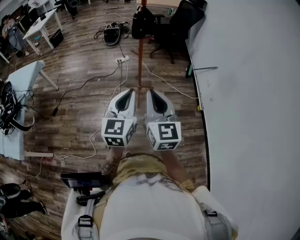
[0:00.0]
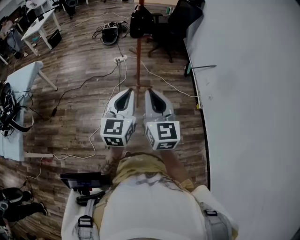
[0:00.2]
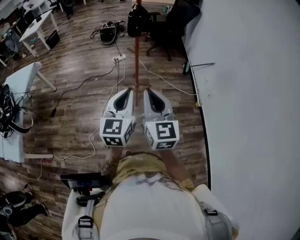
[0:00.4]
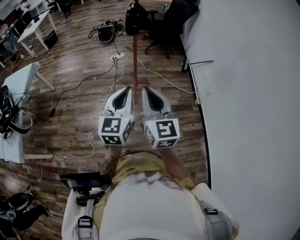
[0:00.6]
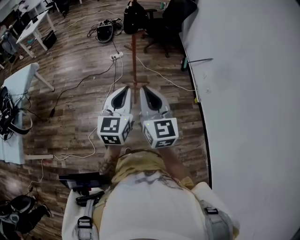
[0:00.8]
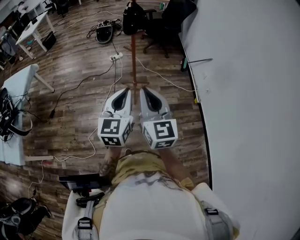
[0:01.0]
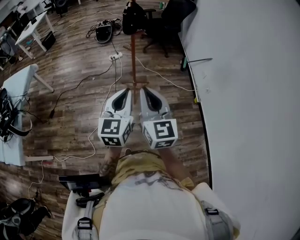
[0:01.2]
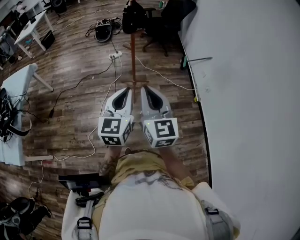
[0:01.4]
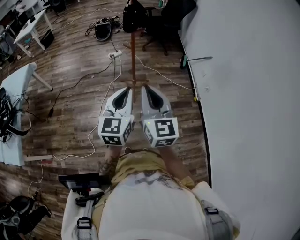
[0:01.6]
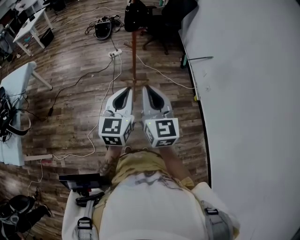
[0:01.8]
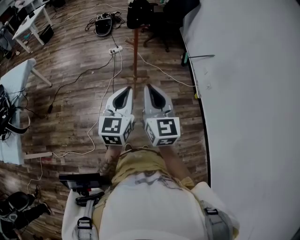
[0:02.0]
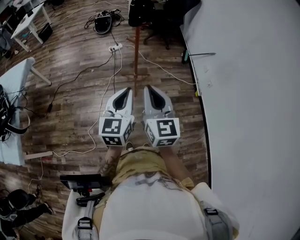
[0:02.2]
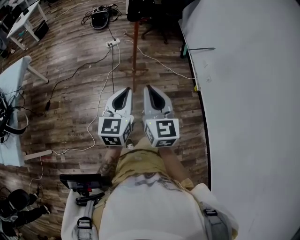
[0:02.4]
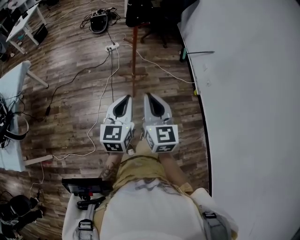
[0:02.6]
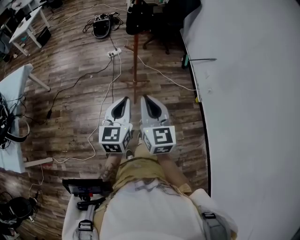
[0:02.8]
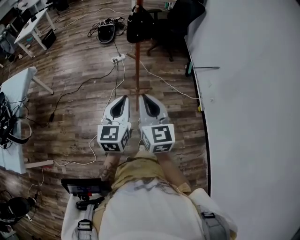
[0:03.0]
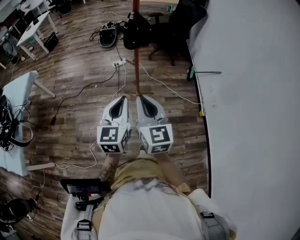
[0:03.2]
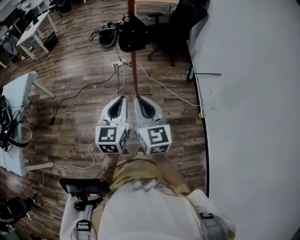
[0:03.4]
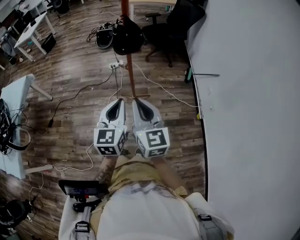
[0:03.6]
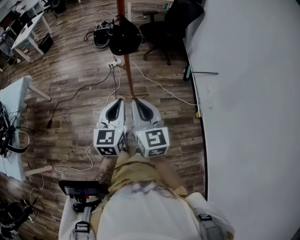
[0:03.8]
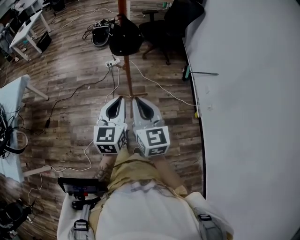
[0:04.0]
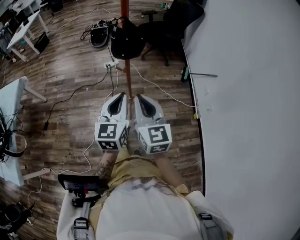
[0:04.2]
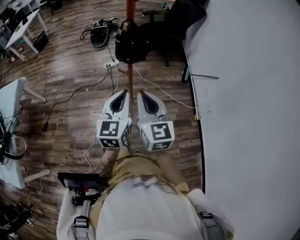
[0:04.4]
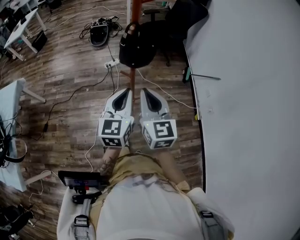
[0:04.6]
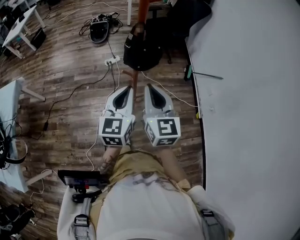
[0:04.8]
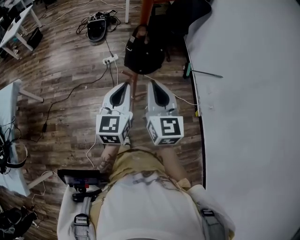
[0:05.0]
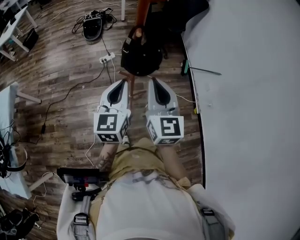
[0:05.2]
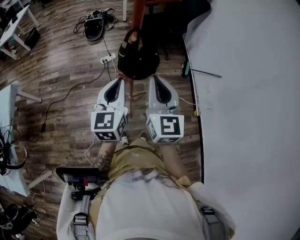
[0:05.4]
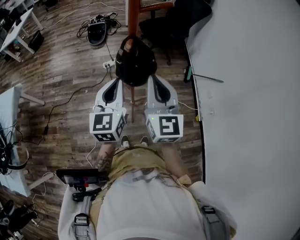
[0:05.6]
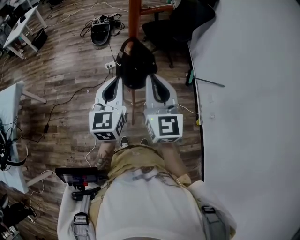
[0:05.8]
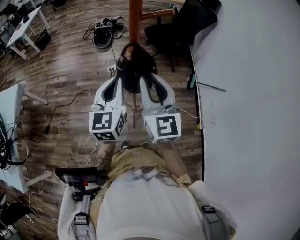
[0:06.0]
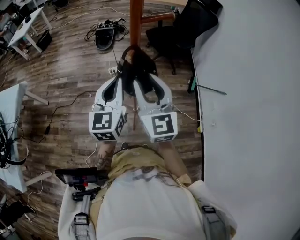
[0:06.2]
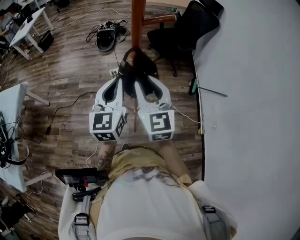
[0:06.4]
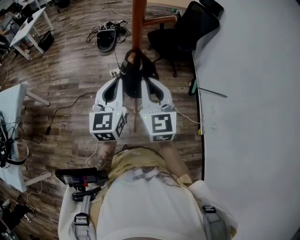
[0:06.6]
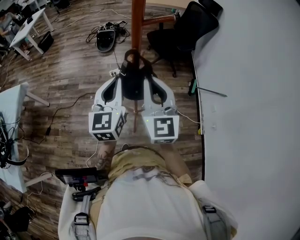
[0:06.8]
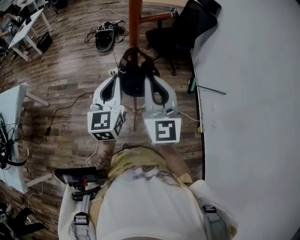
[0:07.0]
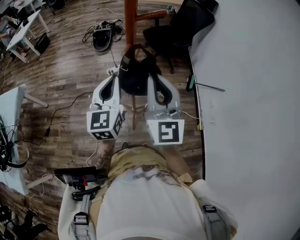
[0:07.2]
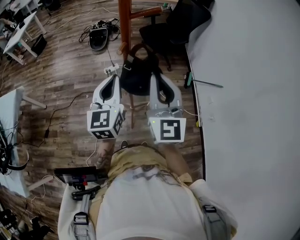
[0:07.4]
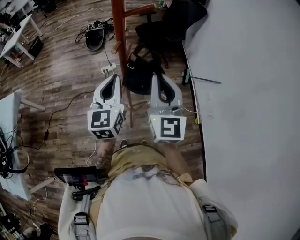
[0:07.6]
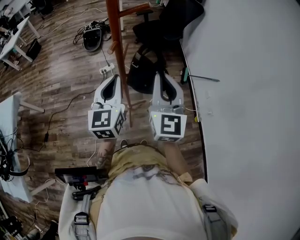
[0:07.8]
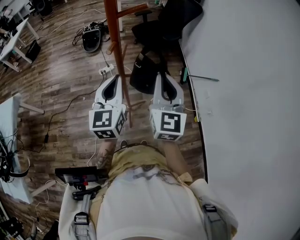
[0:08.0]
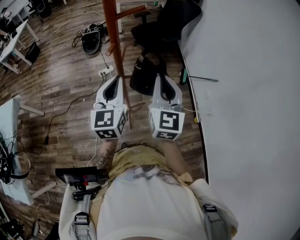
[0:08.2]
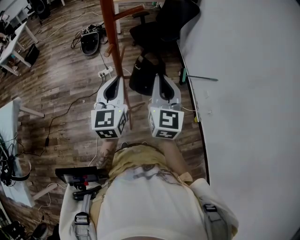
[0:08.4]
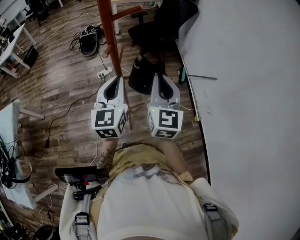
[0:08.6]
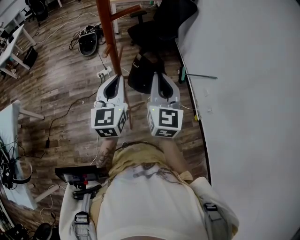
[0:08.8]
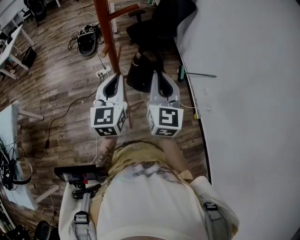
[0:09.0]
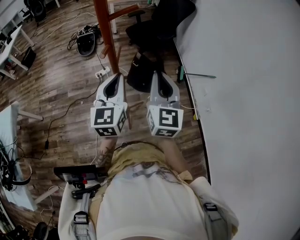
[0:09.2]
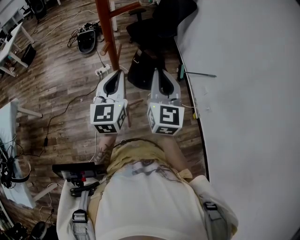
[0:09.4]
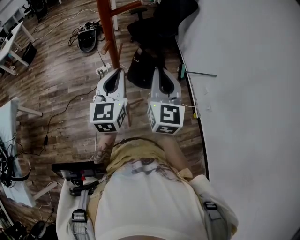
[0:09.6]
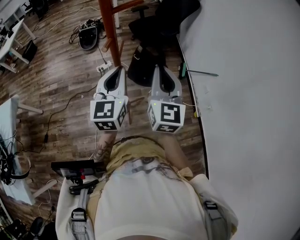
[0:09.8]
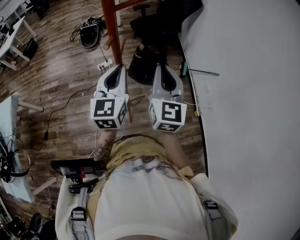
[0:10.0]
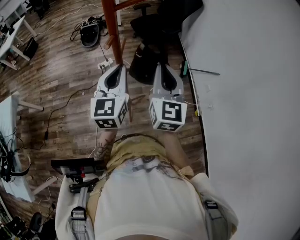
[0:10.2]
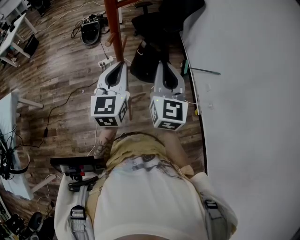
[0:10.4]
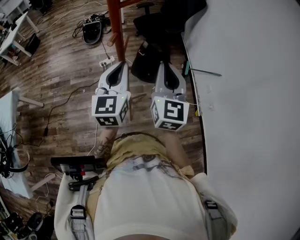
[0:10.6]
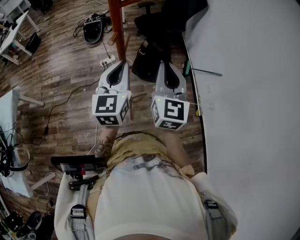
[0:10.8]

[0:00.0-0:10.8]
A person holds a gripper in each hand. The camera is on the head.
0:00.0 to 0:01.6: The grippers make only small movements.
0:01.6 to 0:03.0: Both grippers travel together forward, about 10 cm.
0:03.0 to 0:04.6: Both grippers travel together forward, approximately 20 cm.
0:04.6 to 0:06.2: The right gripper heads forward and upward, covering about 15 cm, and opens up, while the left gripper moves forward, some 15 cm.
0:06.2 to 0:07.8: The right gripper moves to the right, approximately 10 cm, rotates approximately 20 degrees, and closes.
0:07.8 to 0:09.2: The grippers move only a little.
0:09.2 to 0:10.8: Both grippers stay put.

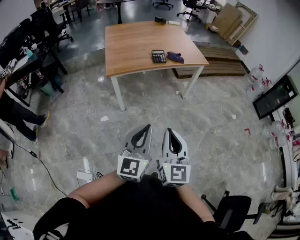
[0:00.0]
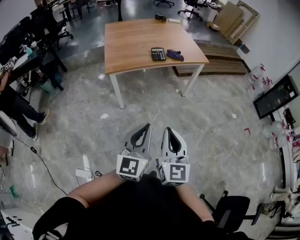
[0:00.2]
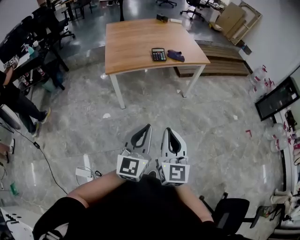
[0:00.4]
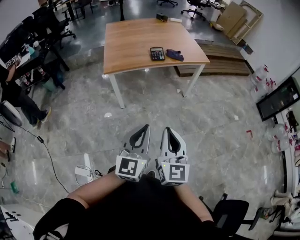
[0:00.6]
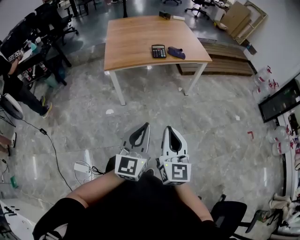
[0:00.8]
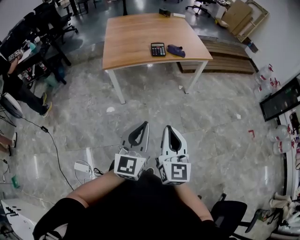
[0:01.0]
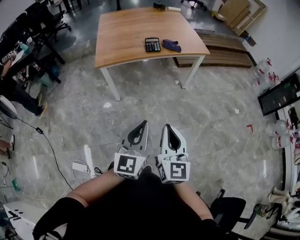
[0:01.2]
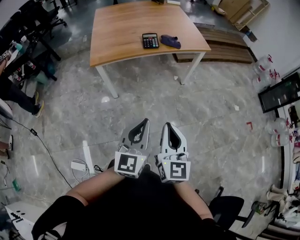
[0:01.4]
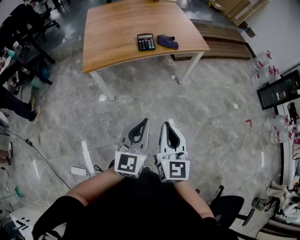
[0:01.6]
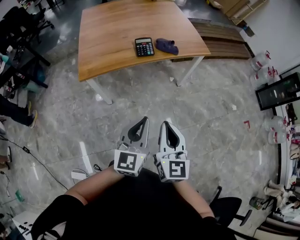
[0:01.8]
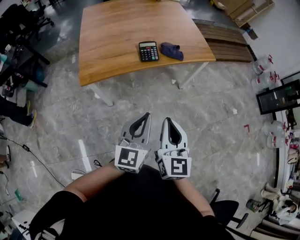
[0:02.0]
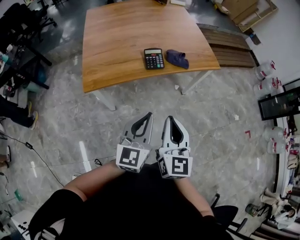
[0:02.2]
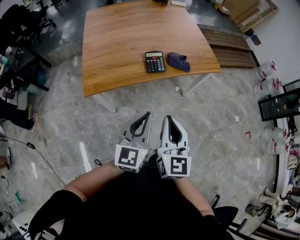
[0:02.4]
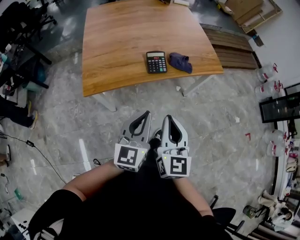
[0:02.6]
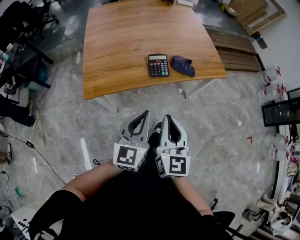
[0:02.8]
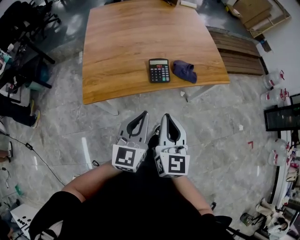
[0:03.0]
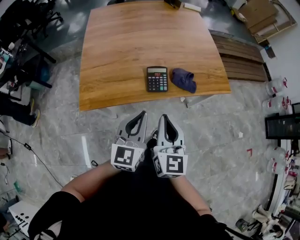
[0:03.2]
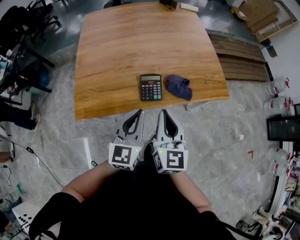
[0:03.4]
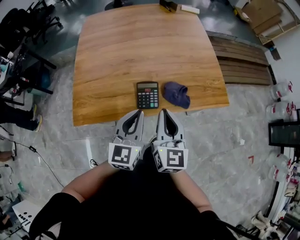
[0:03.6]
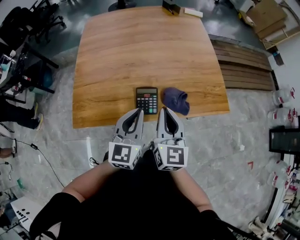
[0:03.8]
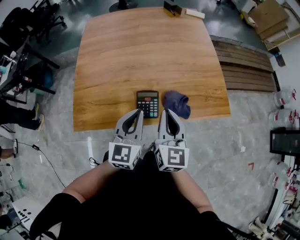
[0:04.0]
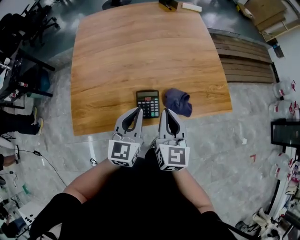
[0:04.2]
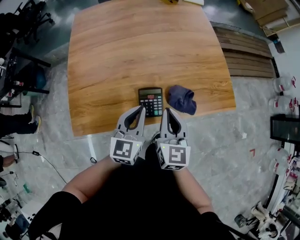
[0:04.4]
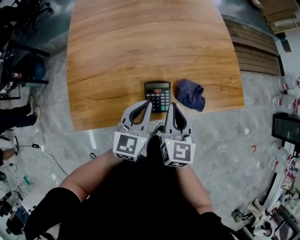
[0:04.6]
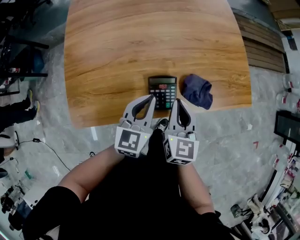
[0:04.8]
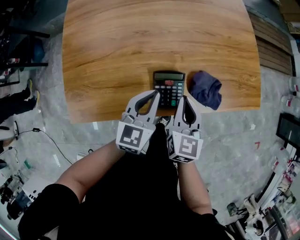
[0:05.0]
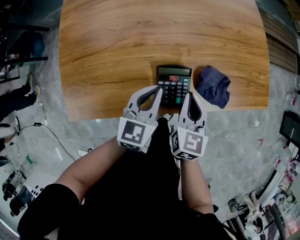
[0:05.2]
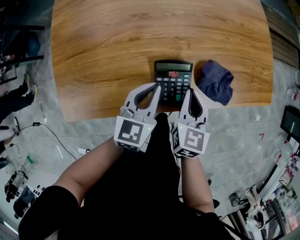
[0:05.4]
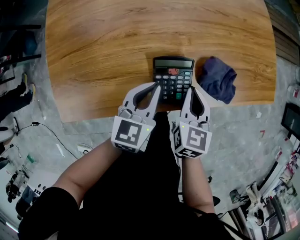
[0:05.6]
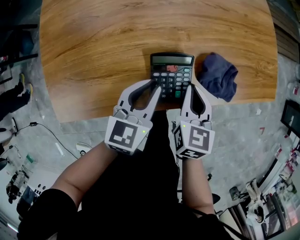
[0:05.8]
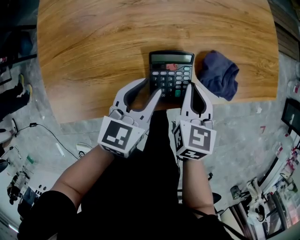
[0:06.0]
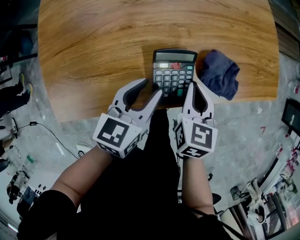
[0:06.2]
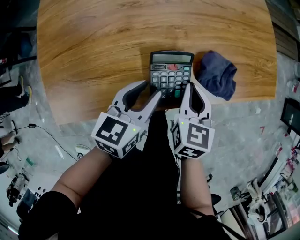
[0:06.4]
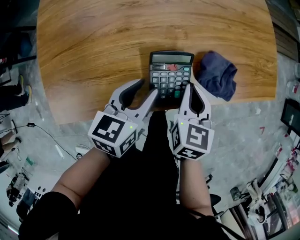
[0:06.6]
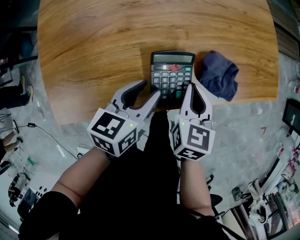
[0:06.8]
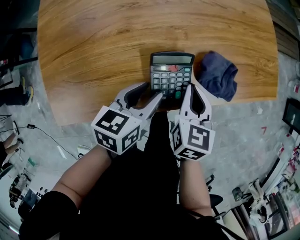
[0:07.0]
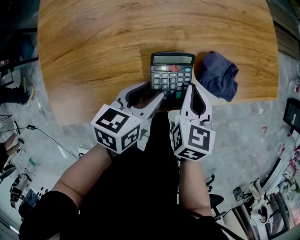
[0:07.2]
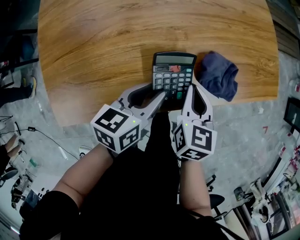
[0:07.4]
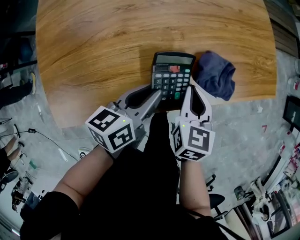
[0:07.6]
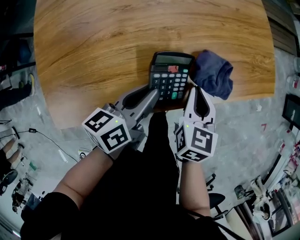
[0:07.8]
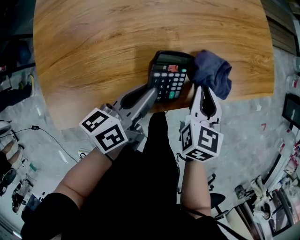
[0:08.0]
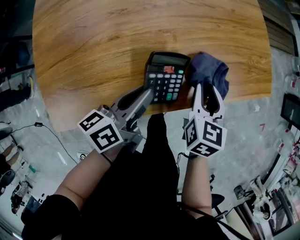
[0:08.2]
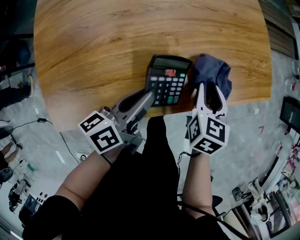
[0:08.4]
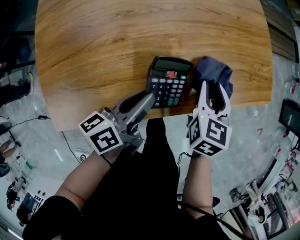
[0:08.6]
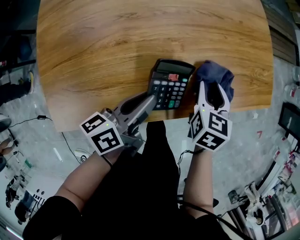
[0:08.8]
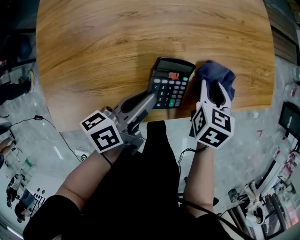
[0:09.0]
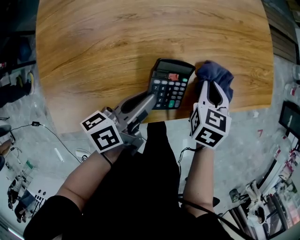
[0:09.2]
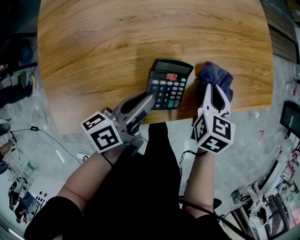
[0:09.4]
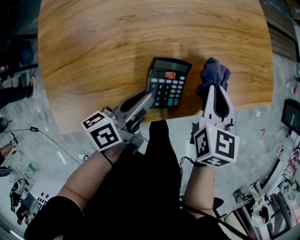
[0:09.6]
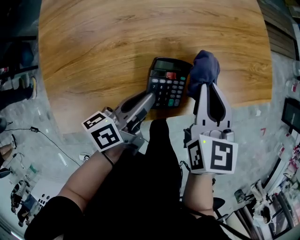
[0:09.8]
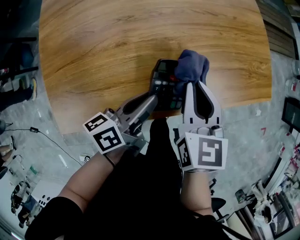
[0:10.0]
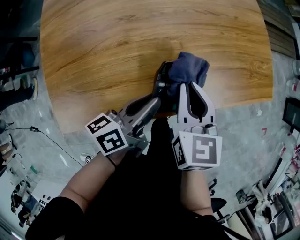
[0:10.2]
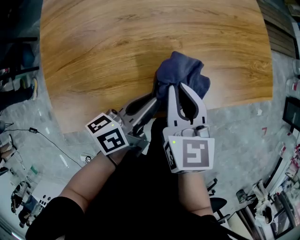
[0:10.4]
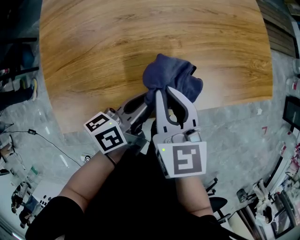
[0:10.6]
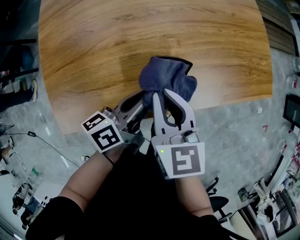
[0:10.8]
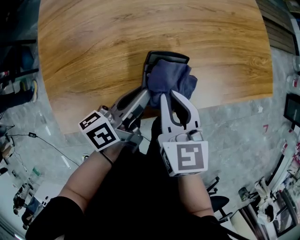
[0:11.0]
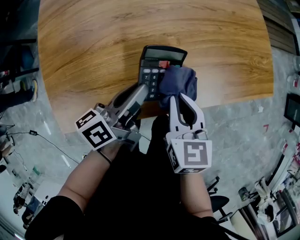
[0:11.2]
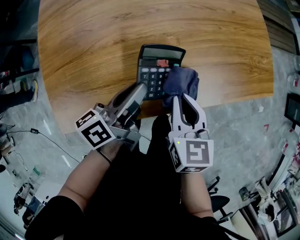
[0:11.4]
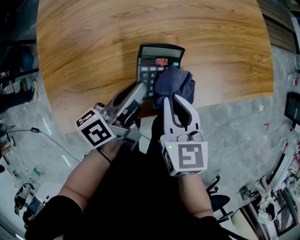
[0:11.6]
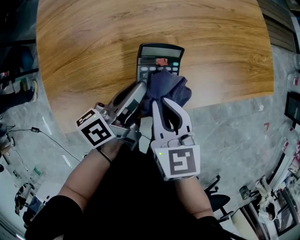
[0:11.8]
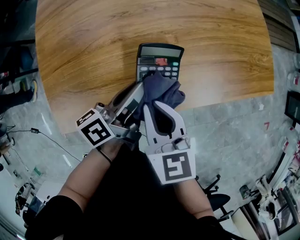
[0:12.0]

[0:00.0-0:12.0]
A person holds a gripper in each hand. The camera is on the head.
0:00.0 to 0:01.6: The two grippers go some 20 cm forward.
0:01.6 to 0:03.0: The grippers both shift forward by roughly 35 cm.
0:03.0 to 0:04.4: Both grippers travel together forward, roughly 30 cm.
0:04.4 to 0:06.0: The two grippers go approximately 20 cm downward. The right gripper rotates some 20 degrees. Meanwhile the left gripper changes its angle by roughly 20 degrees, and opens up.
0:06.0 to 0:07.6: The left gripper changes its angle by some 30 degrees.
0:07.6 to 0:09.0: The left gripper turns by some 20 degrees, while the right gripper goes some 10 cm forward, and opens.
0:09.0 to 0:10.4: The right gripper moves to the left, upward and backward, approximately 15 cm, changes its angle by about 20 degrees, and closes.
0:10.4 to 0:12.0: The right gripper travels backward by roughly 5 cm.

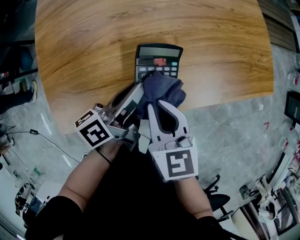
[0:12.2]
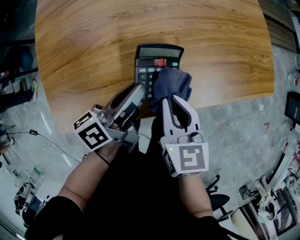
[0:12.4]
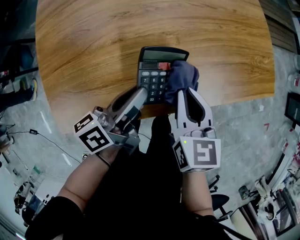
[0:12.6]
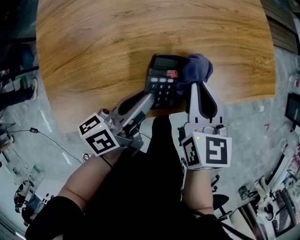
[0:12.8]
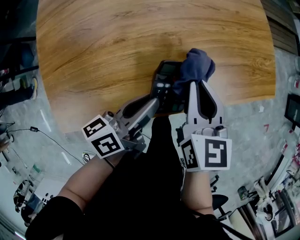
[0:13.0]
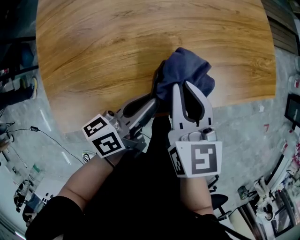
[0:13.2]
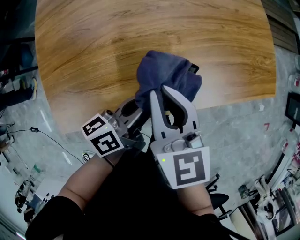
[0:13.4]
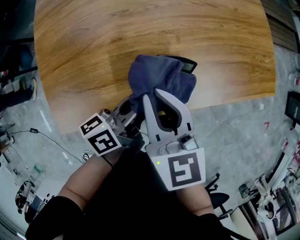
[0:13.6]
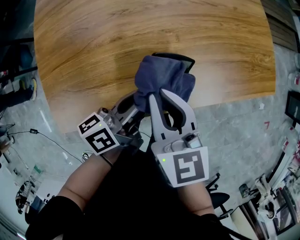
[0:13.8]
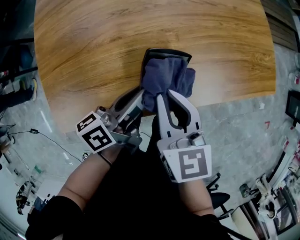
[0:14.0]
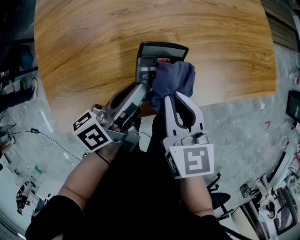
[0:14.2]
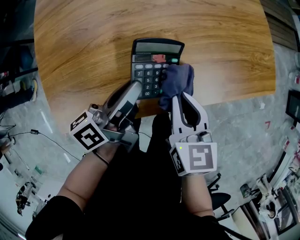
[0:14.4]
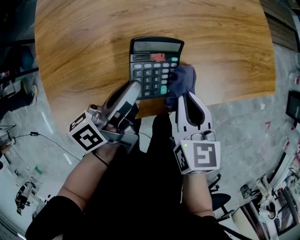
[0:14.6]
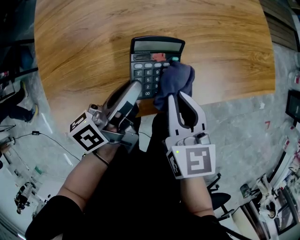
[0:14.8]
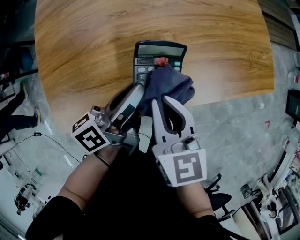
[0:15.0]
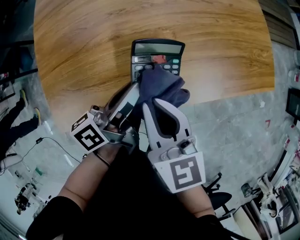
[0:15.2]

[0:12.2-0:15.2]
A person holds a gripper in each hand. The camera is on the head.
0:12.2 to 0:13.8: The right gripper travels to the right and back again, roughly 10 cm each way.
0:13.8 to 0:15.2: The right gripper reaches roughly 10 cm to the right, then returns.
